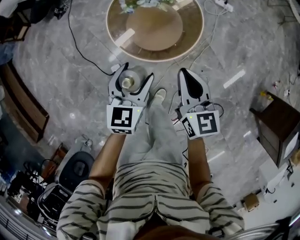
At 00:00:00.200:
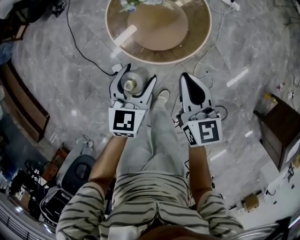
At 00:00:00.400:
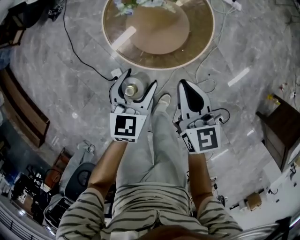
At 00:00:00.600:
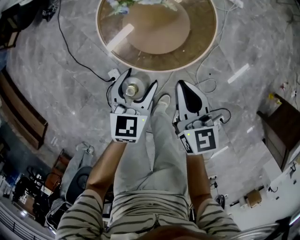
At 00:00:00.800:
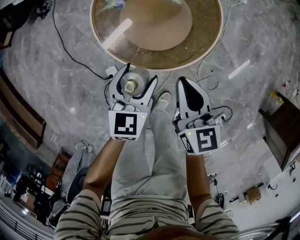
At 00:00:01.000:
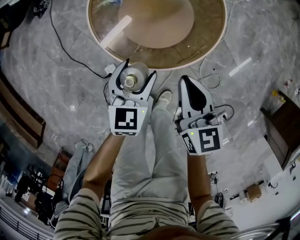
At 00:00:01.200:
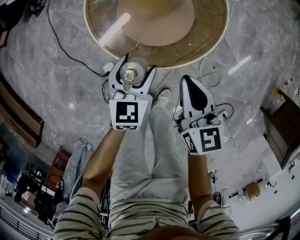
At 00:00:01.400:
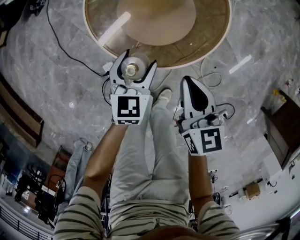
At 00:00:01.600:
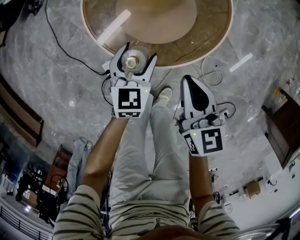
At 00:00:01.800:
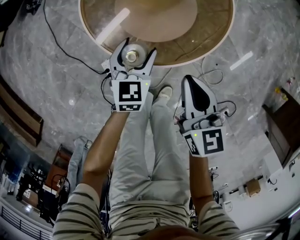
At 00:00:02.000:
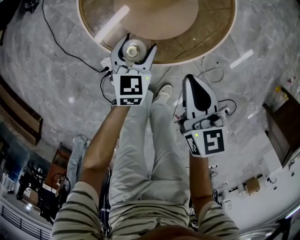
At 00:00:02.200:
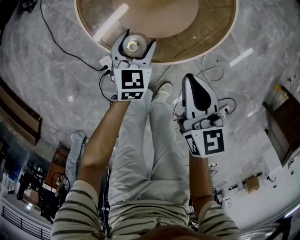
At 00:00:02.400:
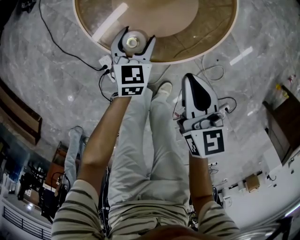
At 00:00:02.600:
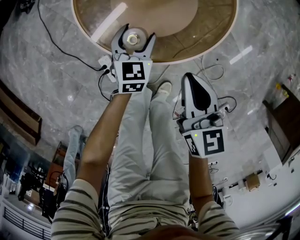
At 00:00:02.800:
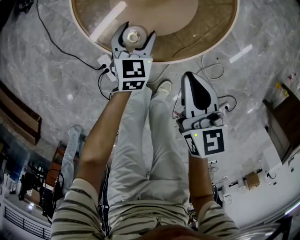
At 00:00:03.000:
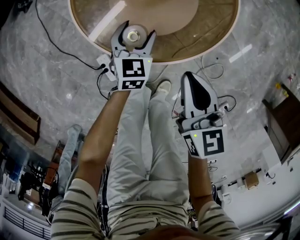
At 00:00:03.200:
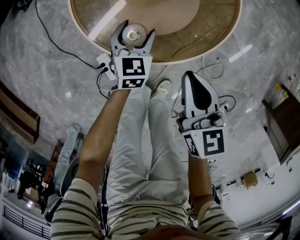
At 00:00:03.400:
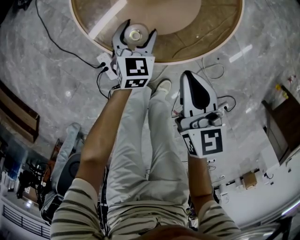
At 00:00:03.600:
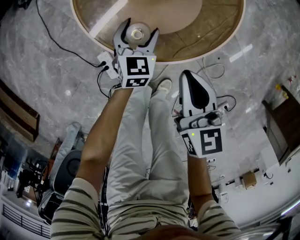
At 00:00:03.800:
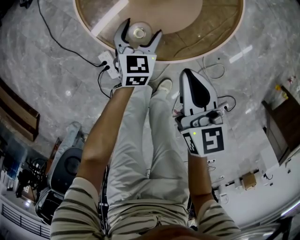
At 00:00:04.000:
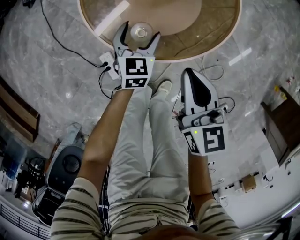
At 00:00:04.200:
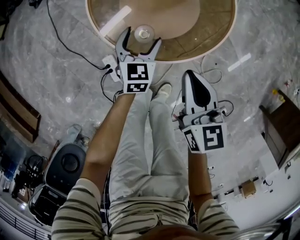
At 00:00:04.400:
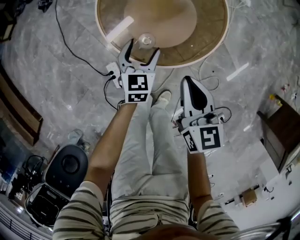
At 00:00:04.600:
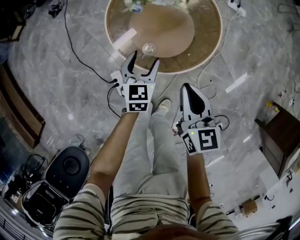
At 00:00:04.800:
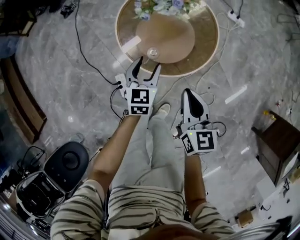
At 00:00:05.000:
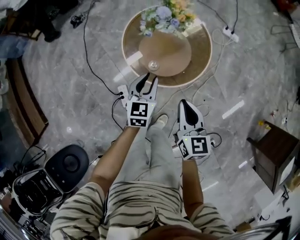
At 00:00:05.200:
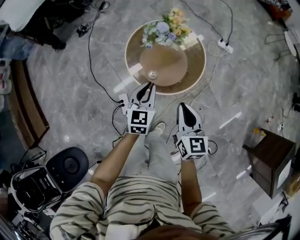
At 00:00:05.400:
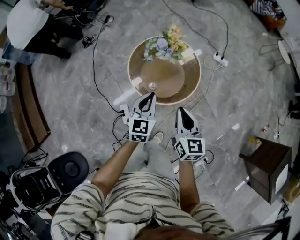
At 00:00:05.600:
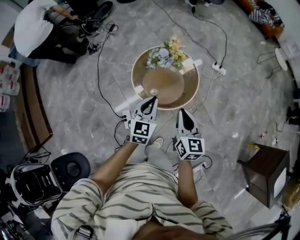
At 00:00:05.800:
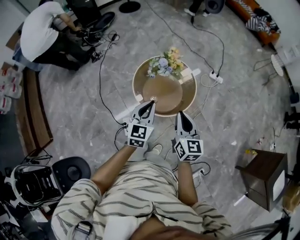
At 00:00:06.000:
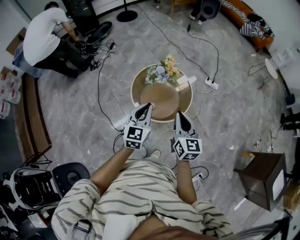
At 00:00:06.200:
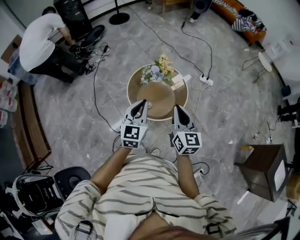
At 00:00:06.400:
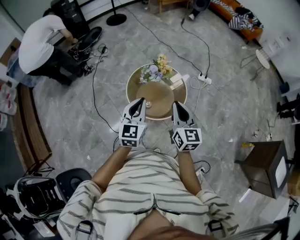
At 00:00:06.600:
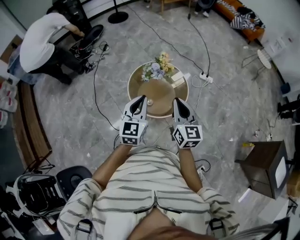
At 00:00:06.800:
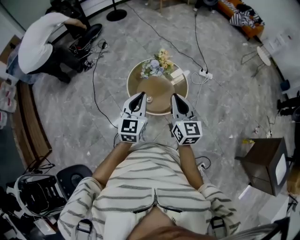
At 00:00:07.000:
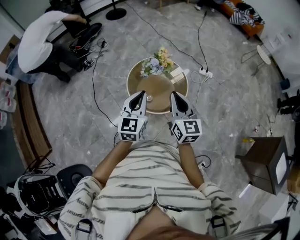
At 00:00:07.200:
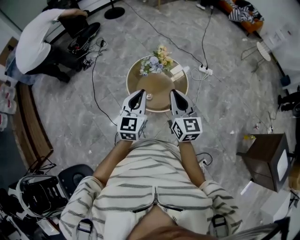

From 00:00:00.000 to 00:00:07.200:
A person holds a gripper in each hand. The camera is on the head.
From 00:00:00.000 to 00:00:01.400: The two grippers go about 25 cm downward.
From 00:00:01.400 to 00:00:02.800: The left gripper heads downward and forward, covering roughly 10 cm.
From 00:00:02.800 to 00:00:04.400: Both grippers travel together upward, approximately 5 cm.
From 00:00:04.400 to 00:00:05.800: The grippers both shift upward by some 40 cm. The left gripper closes up.
From 00:00:05.800 to 00:00:07.200: The two grippers go about 10 cm upward.

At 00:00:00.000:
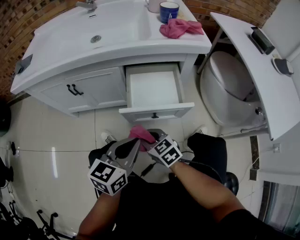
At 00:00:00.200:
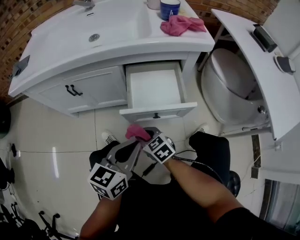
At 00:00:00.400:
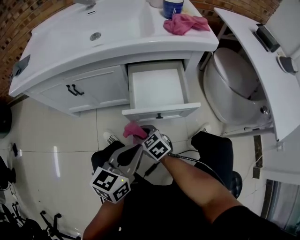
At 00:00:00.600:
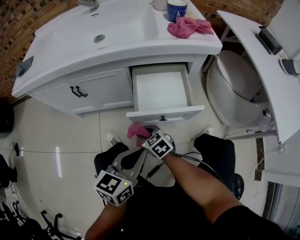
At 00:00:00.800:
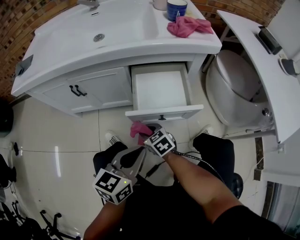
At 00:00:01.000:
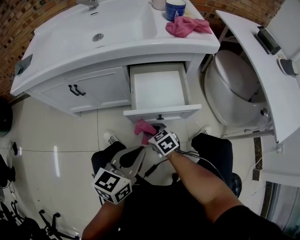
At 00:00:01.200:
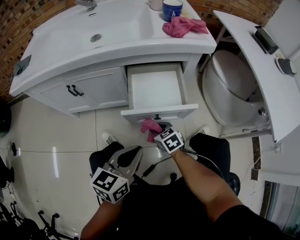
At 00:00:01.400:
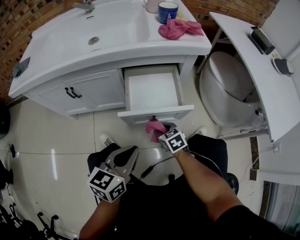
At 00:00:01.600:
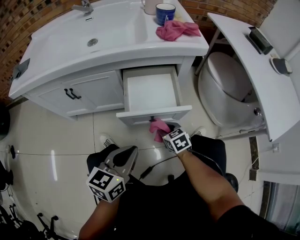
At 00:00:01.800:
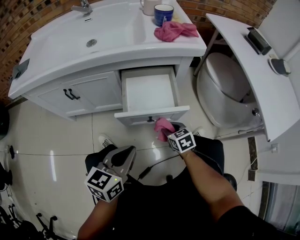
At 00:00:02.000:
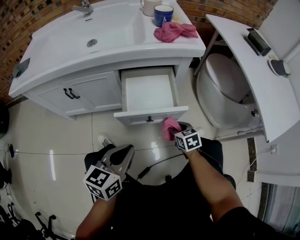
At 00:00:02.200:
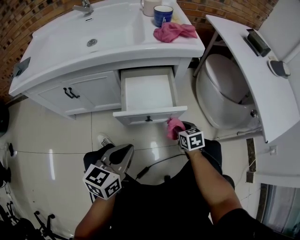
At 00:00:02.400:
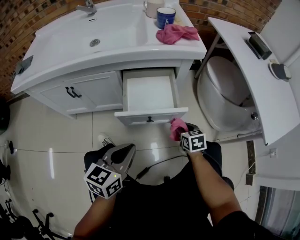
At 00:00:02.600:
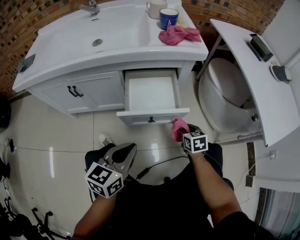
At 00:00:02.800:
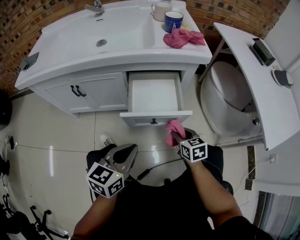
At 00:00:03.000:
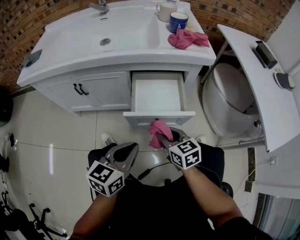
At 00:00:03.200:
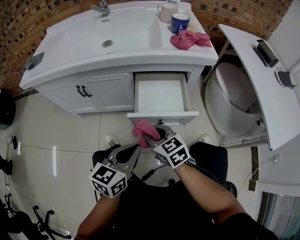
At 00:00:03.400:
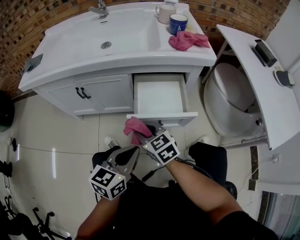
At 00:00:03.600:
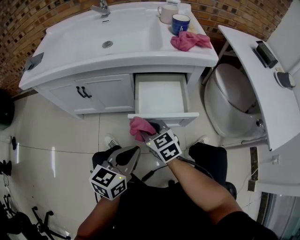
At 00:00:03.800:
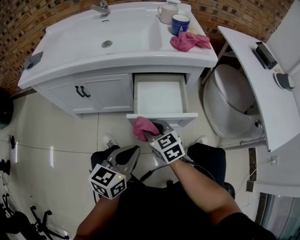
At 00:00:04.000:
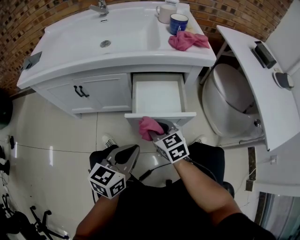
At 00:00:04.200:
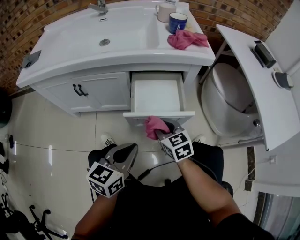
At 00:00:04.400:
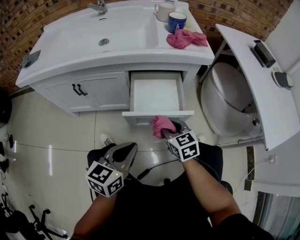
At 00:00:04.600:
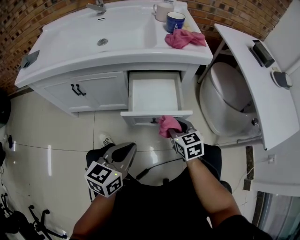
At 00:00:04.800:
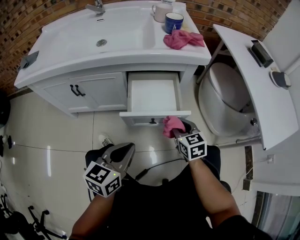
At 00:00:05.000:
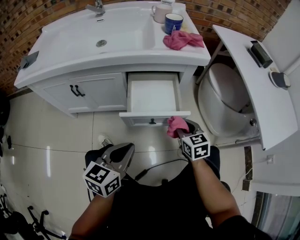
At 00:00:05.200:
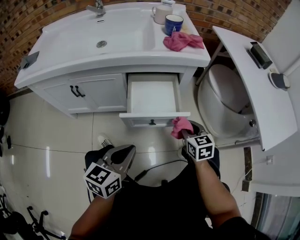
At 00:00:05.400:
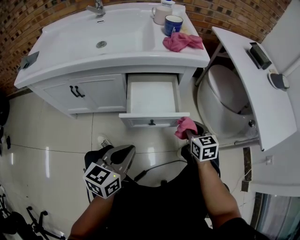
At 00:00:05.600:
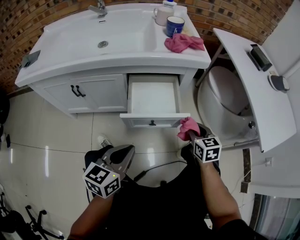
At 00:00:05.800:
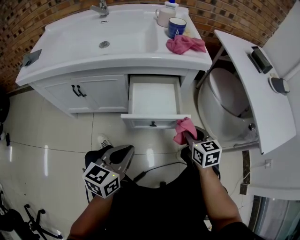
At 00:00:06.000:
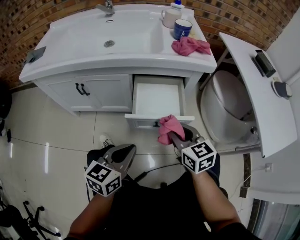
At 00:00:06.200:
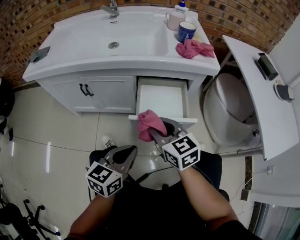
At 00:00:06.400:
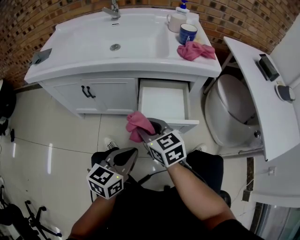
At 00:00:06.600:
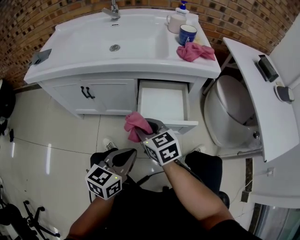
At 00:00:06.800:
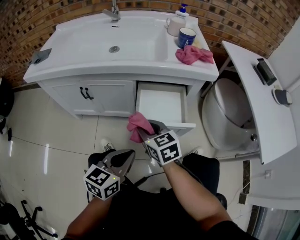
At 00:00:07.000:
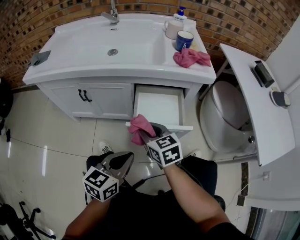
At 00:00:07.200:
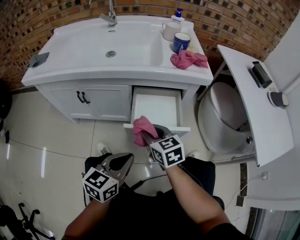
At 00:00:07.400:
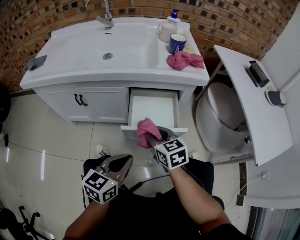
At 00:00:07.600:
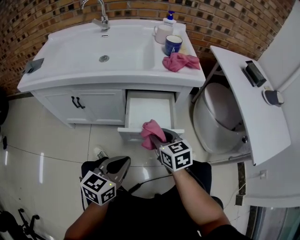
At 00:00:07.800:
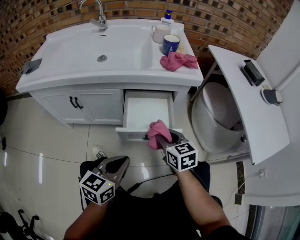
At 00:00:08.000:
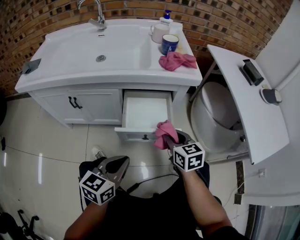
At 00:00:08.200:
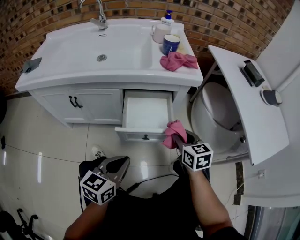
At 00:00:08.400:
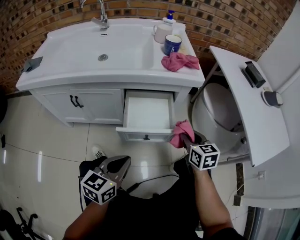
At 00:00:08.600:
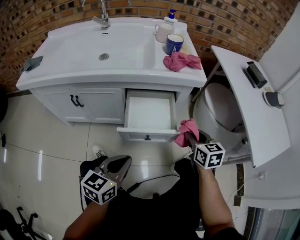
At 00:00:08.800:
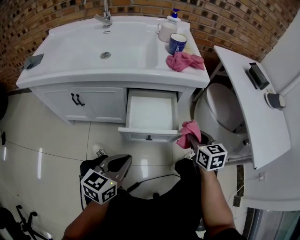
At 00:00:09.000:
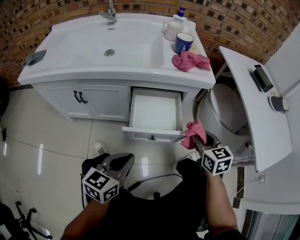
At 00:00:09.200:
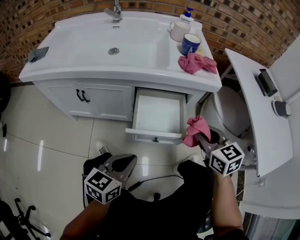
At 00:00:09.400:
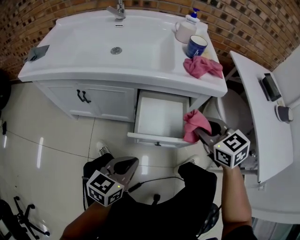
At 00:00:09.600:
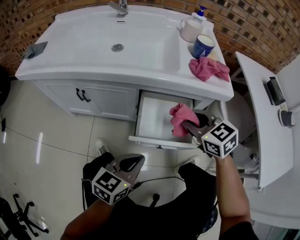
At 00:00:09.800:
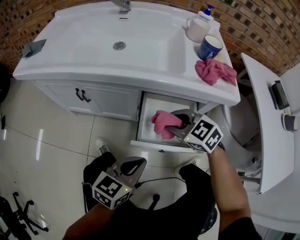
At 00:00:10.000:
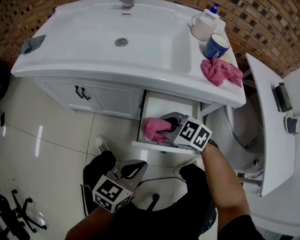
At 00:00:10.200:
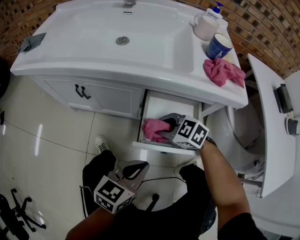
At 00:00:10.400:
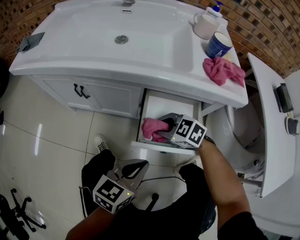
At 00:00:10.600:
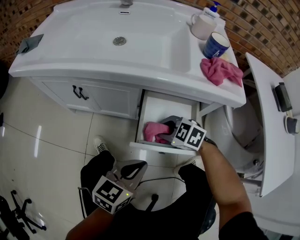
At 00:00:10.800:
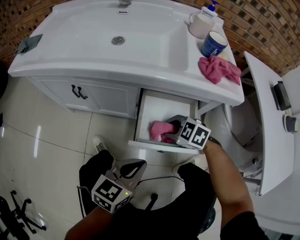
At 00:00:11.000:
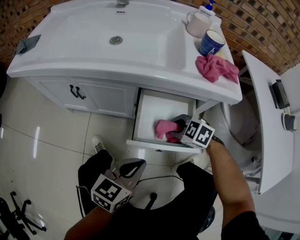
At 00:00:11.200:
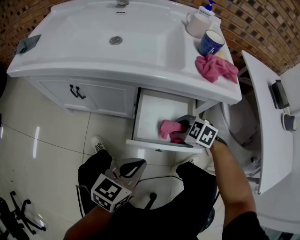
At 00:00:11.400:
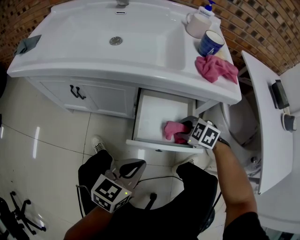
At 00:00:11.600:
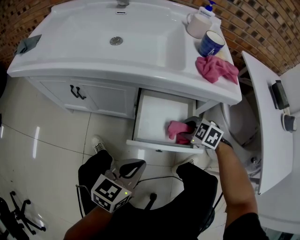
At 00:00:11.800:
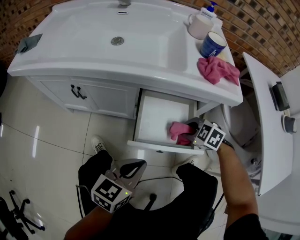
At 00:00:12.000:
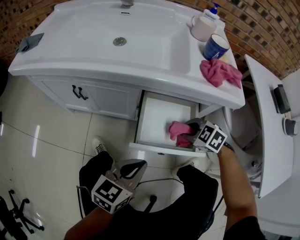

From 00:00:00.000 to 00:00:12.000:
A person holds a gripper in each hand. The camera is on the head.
From 00:00:00.000 to 00:00:01.600: The right gripper heads to the right, downward and forward, covering roughly 15 cm.
From 00:00:01.600 to 00:00:03.000: The right gripper is displaced upward by some 15 cm, and goes to the right and returns, roughly 10 cm each way.
From 00:00:03.000 to 00:00:04.400: The right gripper reaches about 10 cm to the left, then returns.
From 00:00:04.400 to 00:00:06.000: The right gripper travels upward by some 10 cm, and travels to the right and back again, some 15 cm each way.
From 00:00:06.000 to 00:00:07.600: The right gripper reaches roughly 15 cm to the left, then returns.
From 00:00:07.600 to 00:00:09.000: The right gripper goes about 15 cm to the right.
From 00:00:09.000 to 00:00:10.400: The left gripper shifts by about 5 cm. The right gripper changes place by roughly 25 cm, and turns by roughly 60 degrees.
From 00:00:10.400 to 00:00:12.000: The right gripper ends up approximately 10 cm from where it was.

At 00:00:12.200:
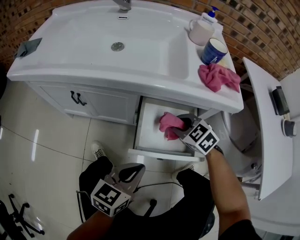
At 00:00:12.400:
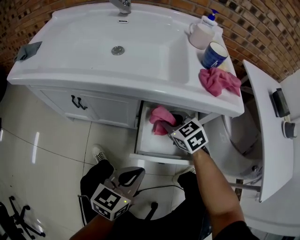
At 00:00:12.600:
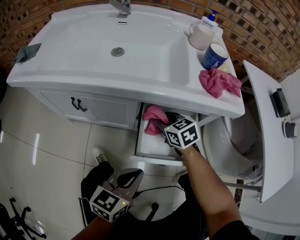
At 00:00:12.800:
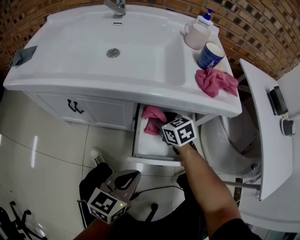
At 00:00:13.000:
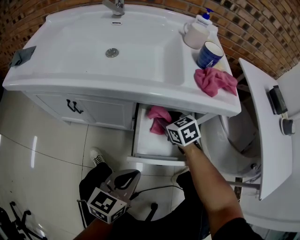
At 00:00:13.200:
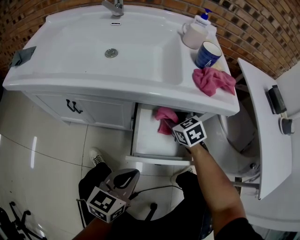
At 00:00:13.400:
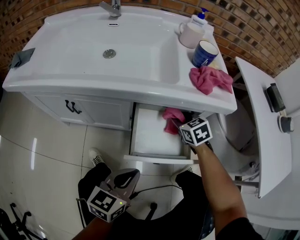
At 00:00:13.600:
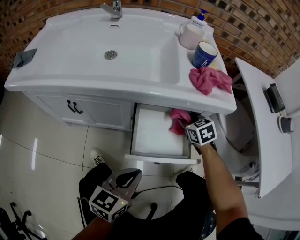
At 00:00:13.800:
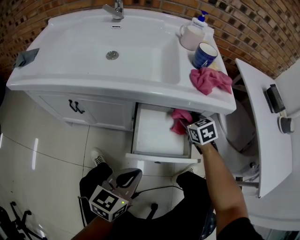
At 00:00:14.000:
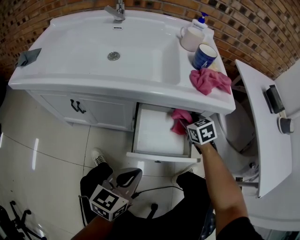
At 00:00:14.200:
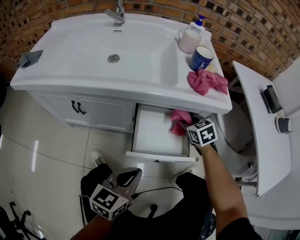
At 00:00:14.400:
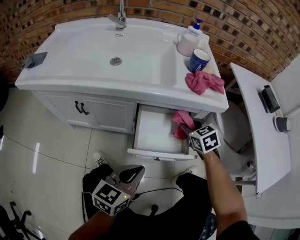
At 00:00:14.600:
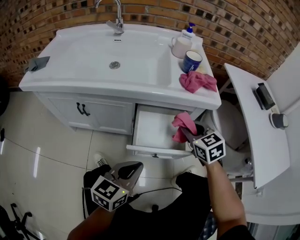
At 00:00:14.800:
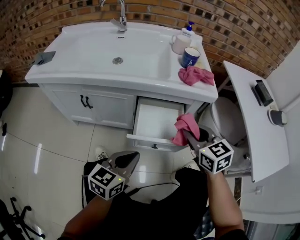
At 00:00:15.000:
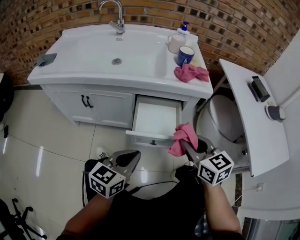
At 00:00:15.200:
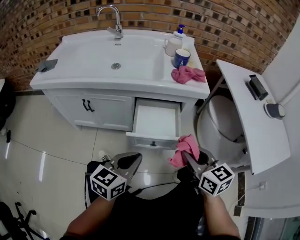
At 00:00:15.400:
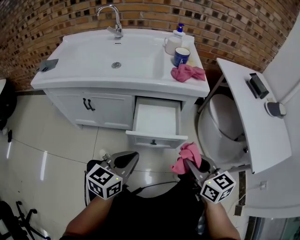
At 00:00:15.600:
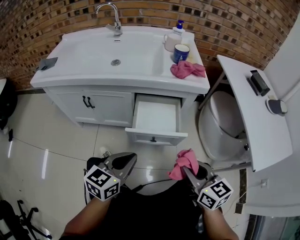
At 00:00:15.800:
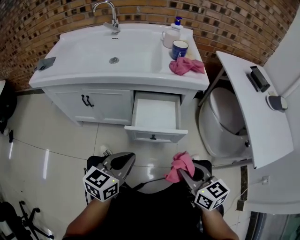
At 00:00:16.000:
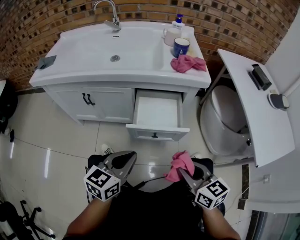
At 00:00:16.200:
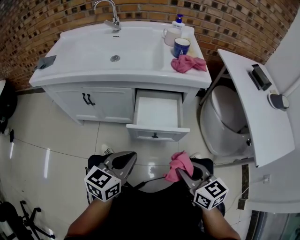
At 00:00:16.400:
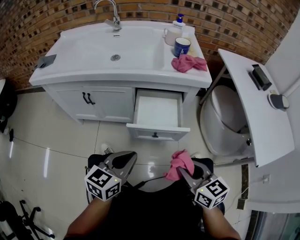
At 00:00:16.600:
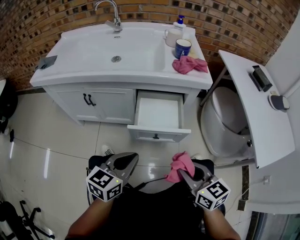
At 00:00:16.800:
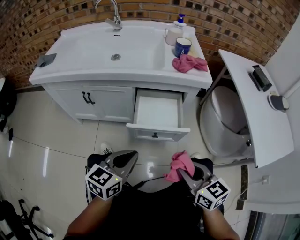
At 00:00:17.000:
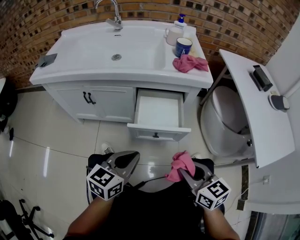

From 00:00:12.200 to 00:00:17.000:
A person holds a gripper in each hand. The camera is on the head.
From 00:00:12.200 to 00:00:13.800: The right gripper travels to the right and forward by about 10 cm, and swivels roughly 30 degrees.
From 00:00:13.800 to 00:00:15.400: The left gripper goes approximately 10 cm upward and backward; the right gripper travels backward and upward by roughly 35 cm, and changes its angle by approximately 30 degrees.
From 00:00:15.400 to 00:00:17.000: The right gripper goes roughly 5 cm backward.
